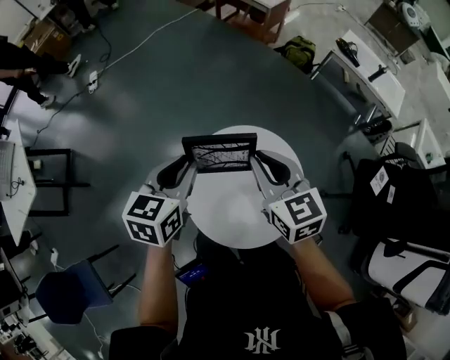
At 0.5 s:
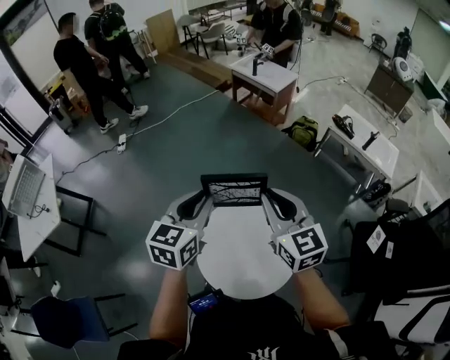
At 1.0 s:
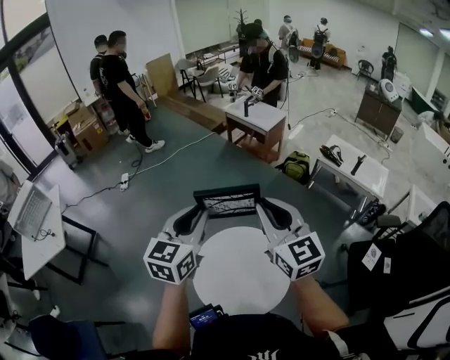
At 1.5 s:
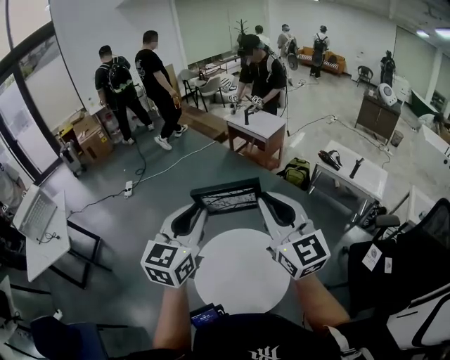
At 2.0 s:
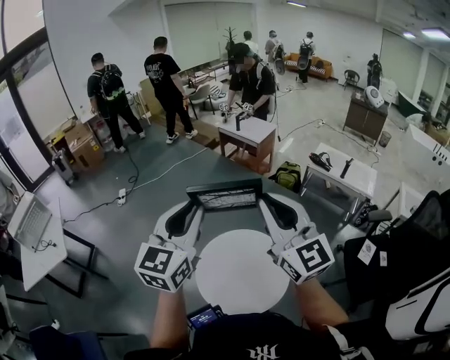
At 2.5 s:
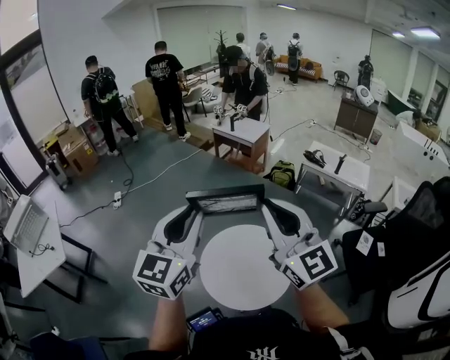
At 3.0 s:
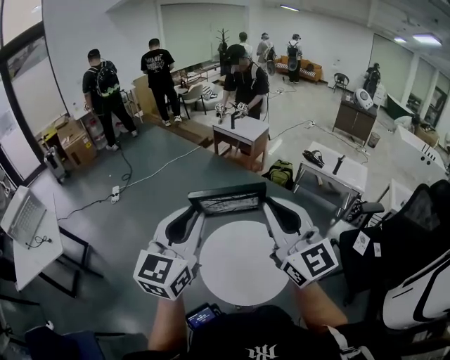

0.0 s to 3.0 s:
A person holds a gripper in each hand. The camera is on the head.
0.0 to 1.5 s: Both grippers travel together upward, some 30 cm. The left gripper turns by about 30 degrees; the right gripper angles its fingers upward, by approximately 30 degrees.
1.5 to 3.0 s: The grippers both shift backward and to the left by about 15 cm.

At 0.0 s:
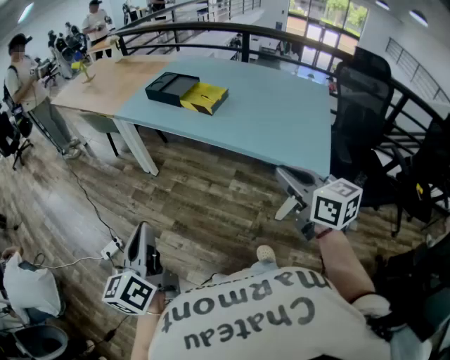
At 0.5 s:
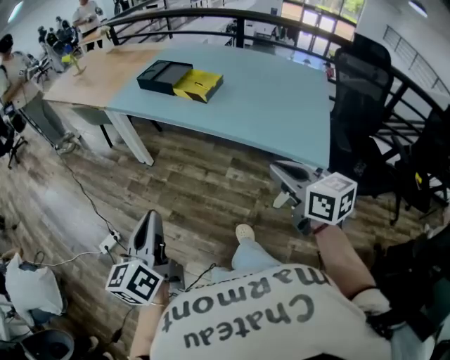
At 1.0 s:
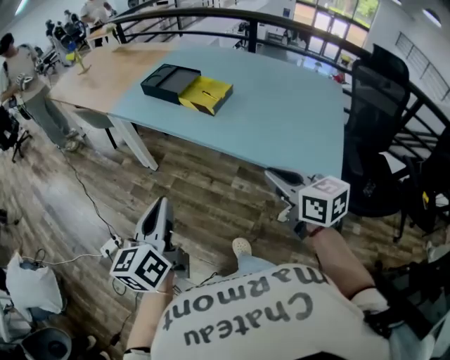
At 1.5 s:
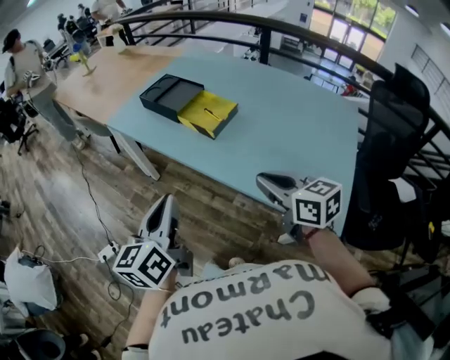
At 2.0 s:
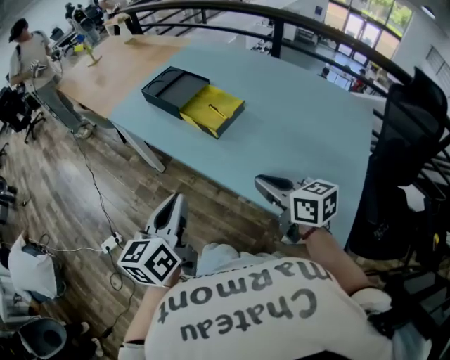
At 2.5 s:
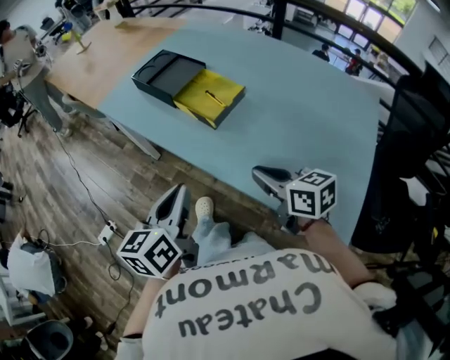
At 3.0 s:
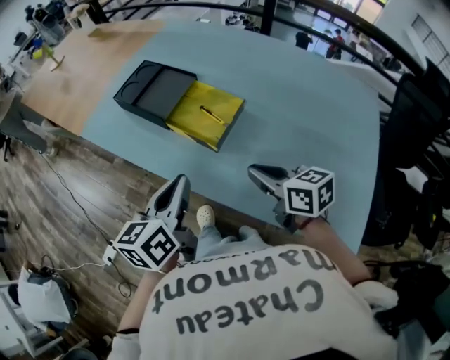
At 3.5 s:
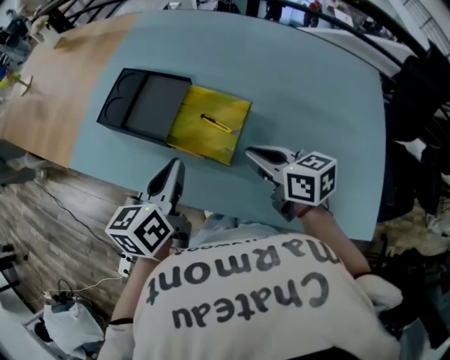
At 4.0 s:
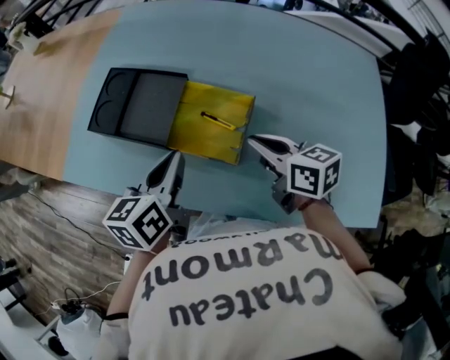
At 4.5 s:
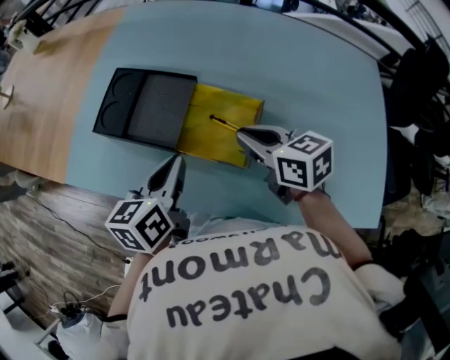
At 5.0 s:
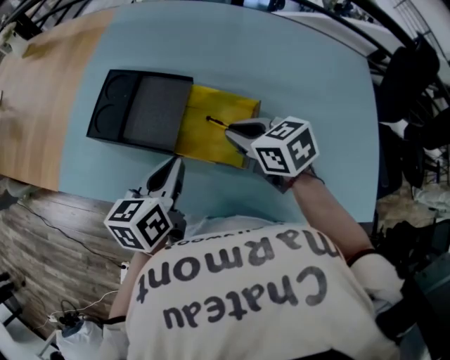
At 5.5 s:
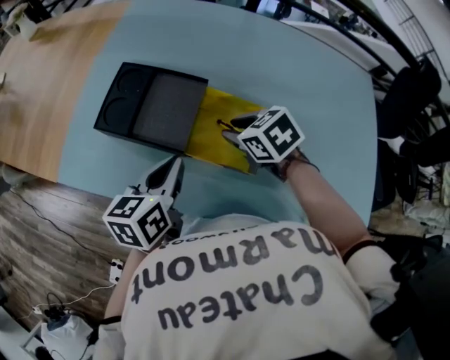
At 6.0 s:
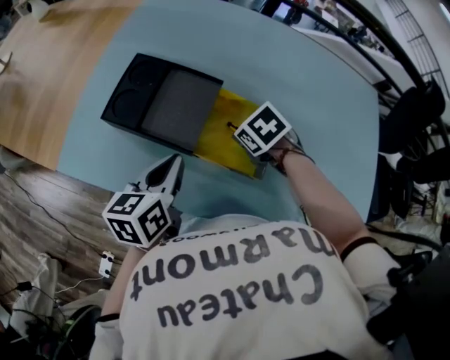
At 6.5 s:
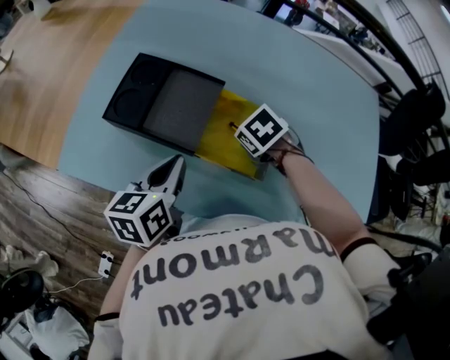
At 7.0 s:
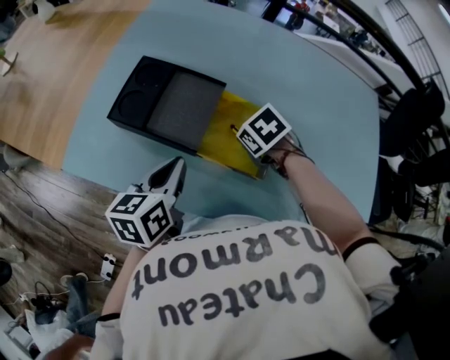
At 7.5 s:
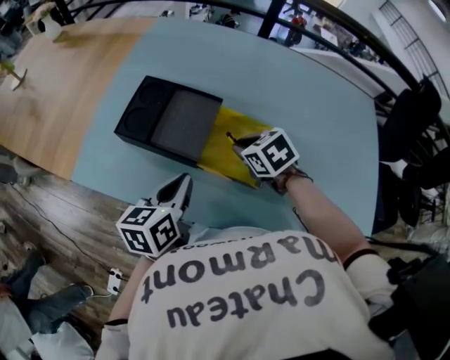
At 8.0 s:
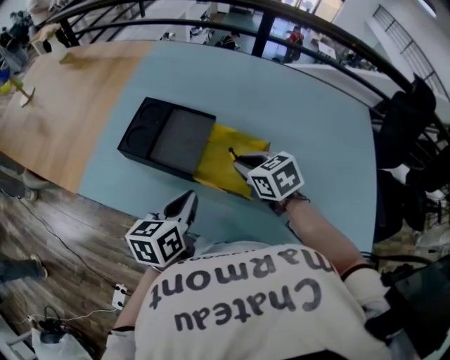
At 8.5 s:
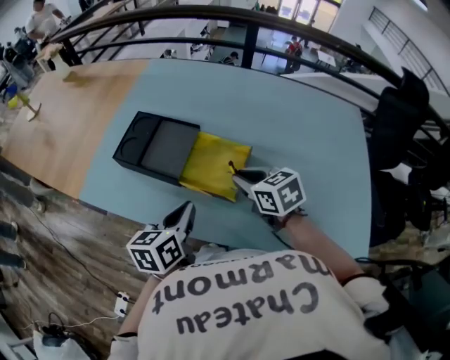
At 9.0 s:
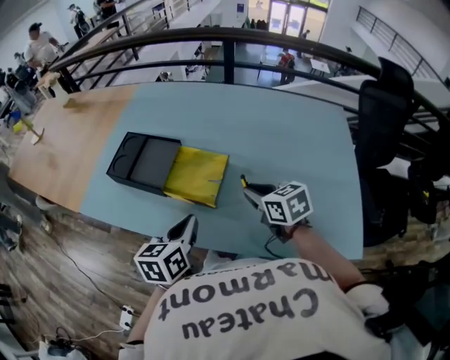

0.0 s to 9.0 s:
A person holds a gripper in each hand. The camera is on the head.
0.0 to 2.0 s: The left gripper goes about 35 cm forward and to the right; the right gripper goes approximately 25 cm forward, and changes its angle by about 20 degrees.
2.0 to 4.5 s: The two grippers go roughly 30 cm forward. The left gripper changes its angle by some 30 degrees.
4.5 to 7.0 s: The right gripper travels downward by about 10 cm, and points its fingers roughly 50 degrees further downward. Meanwhile the left gripper changes place by roughly 5 cm.
7.0 to 9.0 s: The right gripper changes place by approximately 20 cm, and points its fingers about 40 degrees further upward; the left gripper changes place by roughly 20 cm.

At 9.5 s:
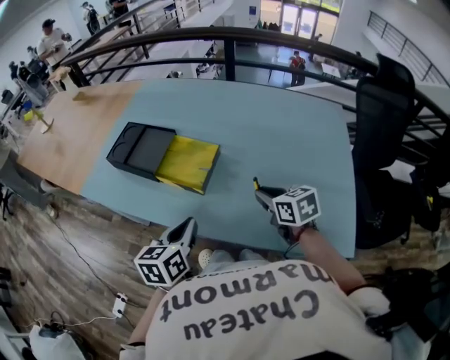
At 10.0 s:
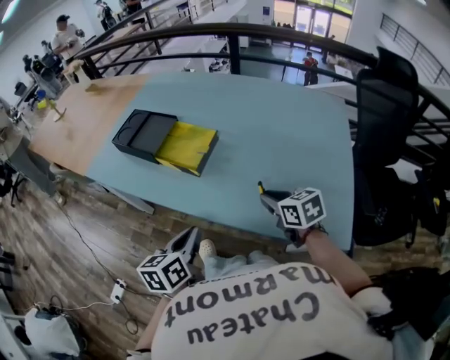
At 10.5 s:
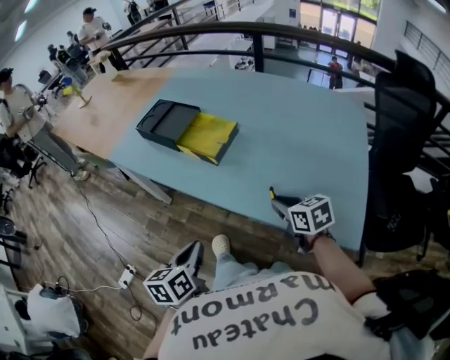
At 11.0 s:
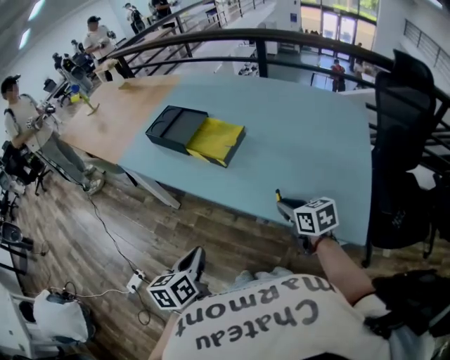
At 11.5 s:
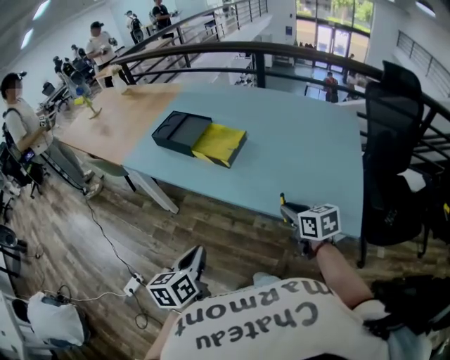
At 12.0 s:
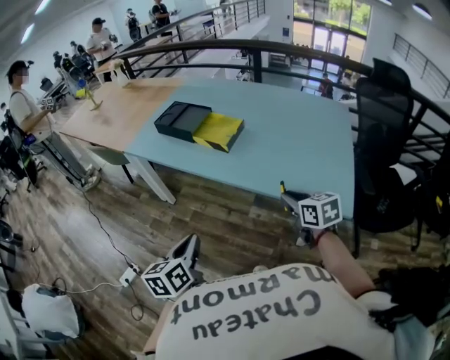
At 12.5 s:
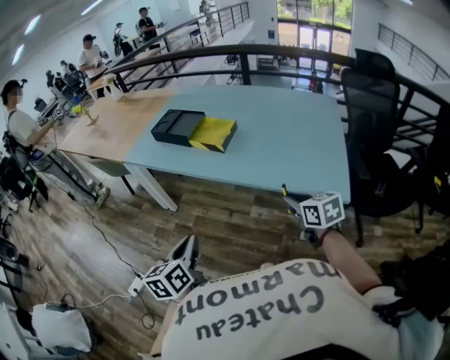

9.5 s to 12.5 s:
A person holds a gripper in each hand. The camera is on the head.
9.5 to 11.0 s: The right gripper goes some 10 cm backward; the left gripper moves backward, approximately 20 cm.
11.0 to 12.5 s: The right gripper goes roughly 20 cm backward and upward; the left gripper moves backward, upward and to the left, some 15 cm.

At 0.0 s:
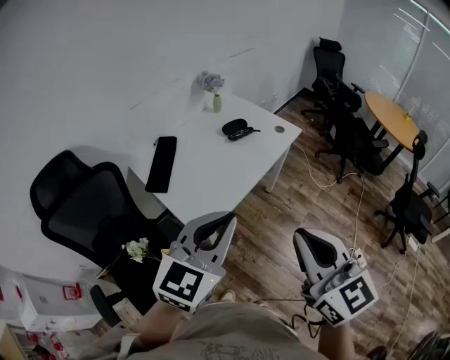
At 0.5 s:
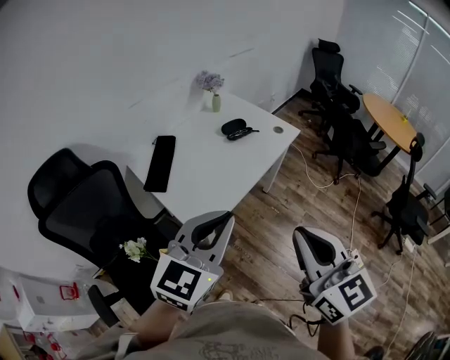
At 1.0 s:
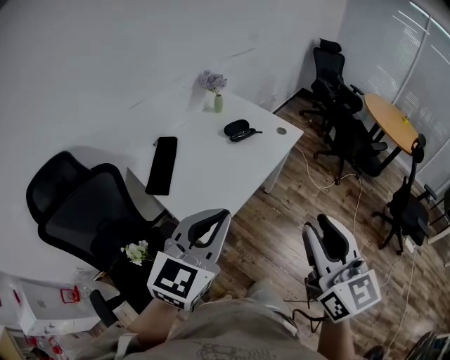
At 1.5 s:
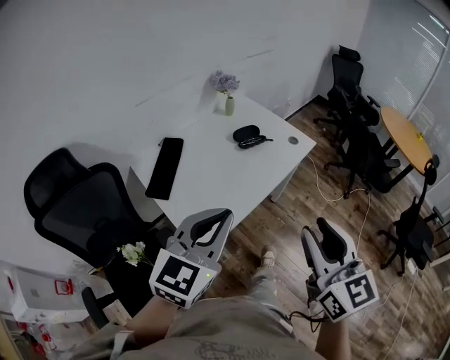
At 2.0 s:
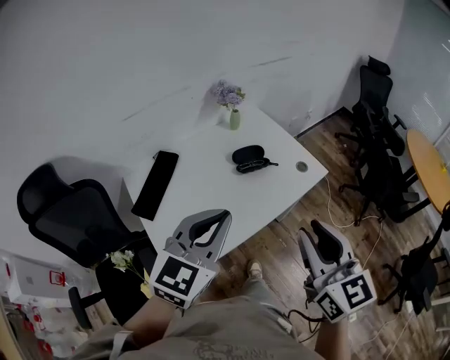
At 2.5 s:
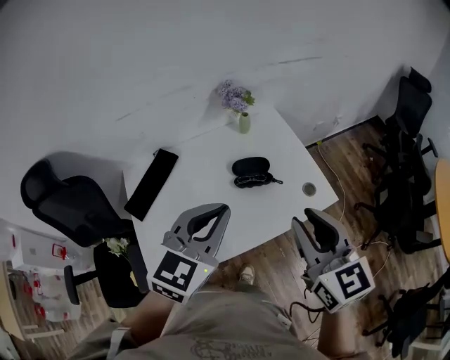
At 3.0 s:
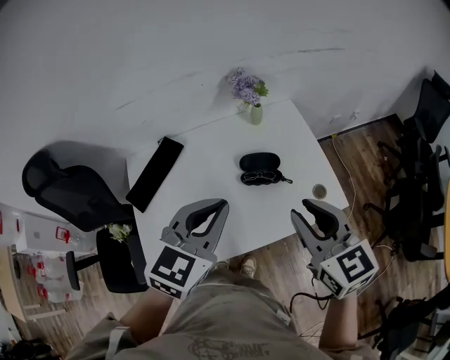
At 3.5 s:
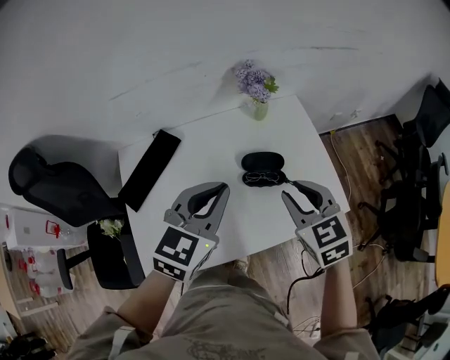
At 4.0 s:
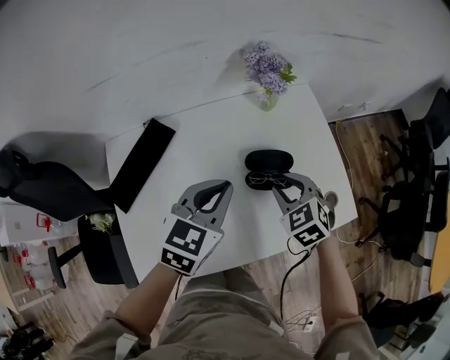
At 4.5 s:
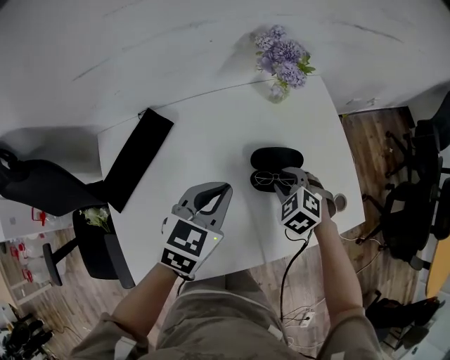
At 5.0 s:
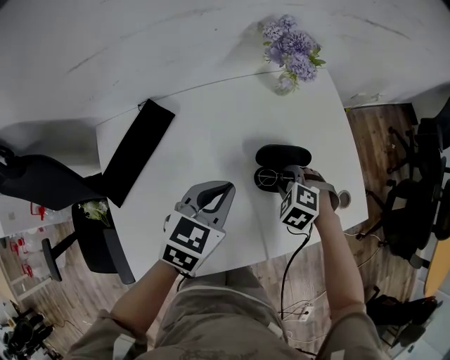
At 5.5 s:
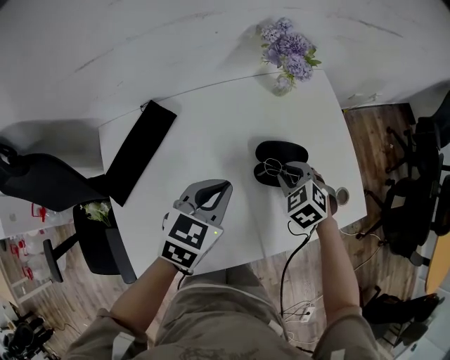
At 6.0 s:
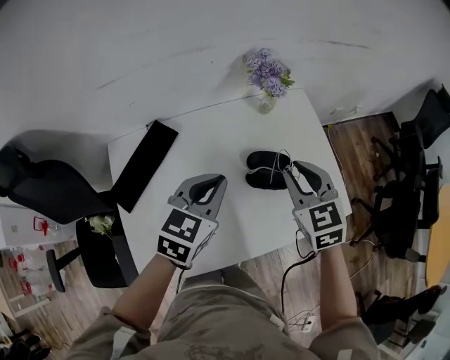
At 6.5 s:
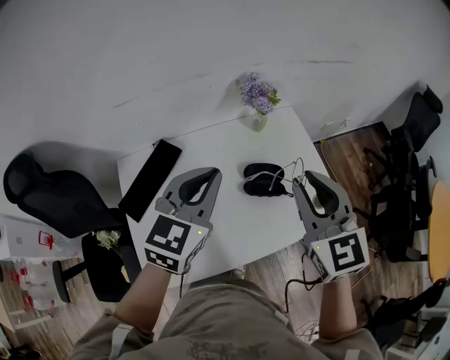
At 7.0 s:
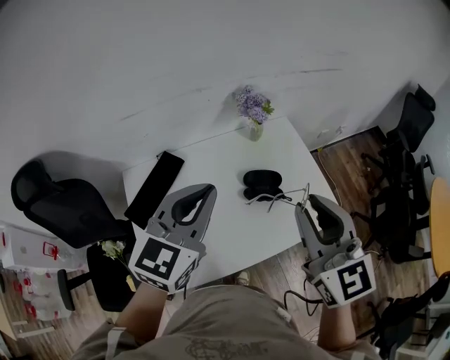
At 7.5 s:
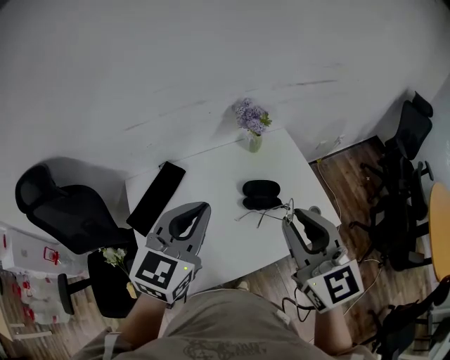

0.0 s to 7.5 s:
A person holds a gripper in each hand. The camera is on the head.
0.0 to 2.0 s: The two grippers go approximately 25 cm forward. The right gripper opens.
2.0 to 4.0 s: The grippers both shift forward and downward by roughly 40 cm. The left gripper changes its angle by about 30 degrees. Meanwhile the right gripper tips its fingers downward by about 40 degrees.
4.0 to 5.5 s: Both grippers move downward, approximately 10 cm.
5.5 to 7.5 s: The right gripper travels upward and backward by about 40 cm, and tilts its fingers about 50 degrees upward, while the left gripper goes roughly 25 cm upward, and turns by roughly 30 degrees.

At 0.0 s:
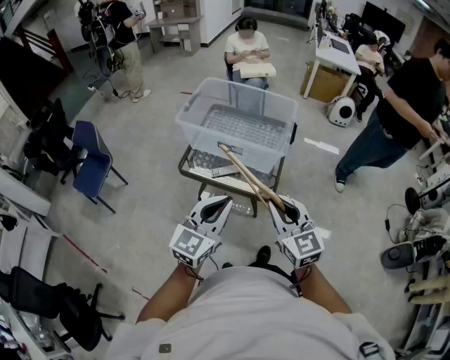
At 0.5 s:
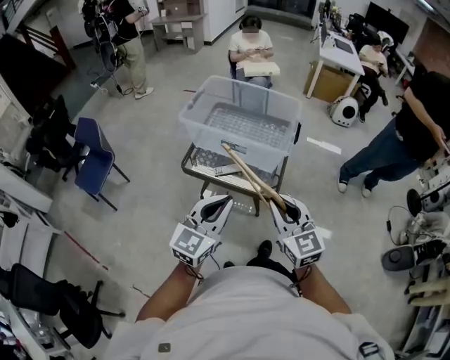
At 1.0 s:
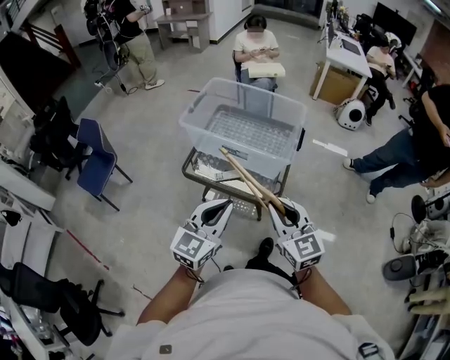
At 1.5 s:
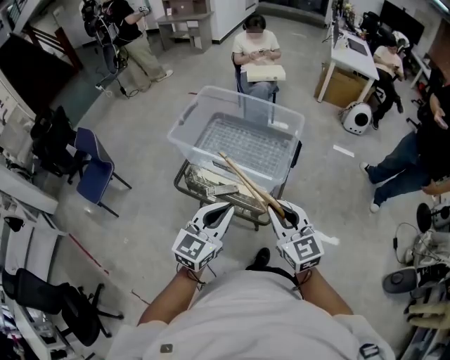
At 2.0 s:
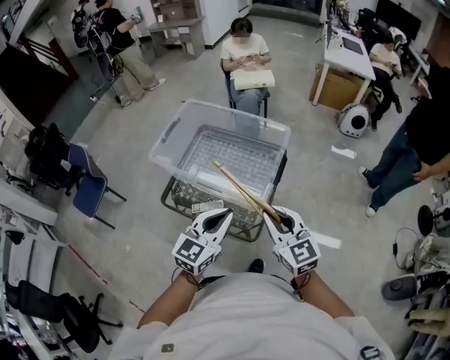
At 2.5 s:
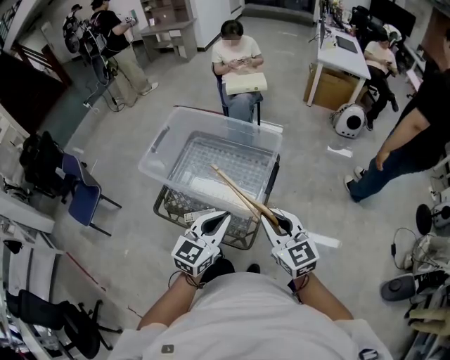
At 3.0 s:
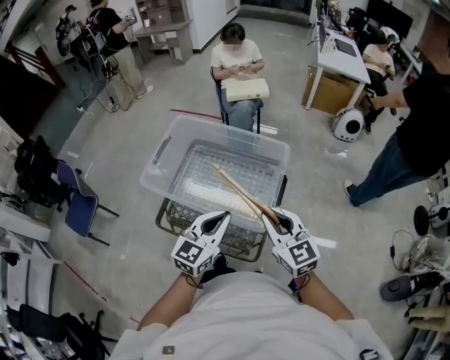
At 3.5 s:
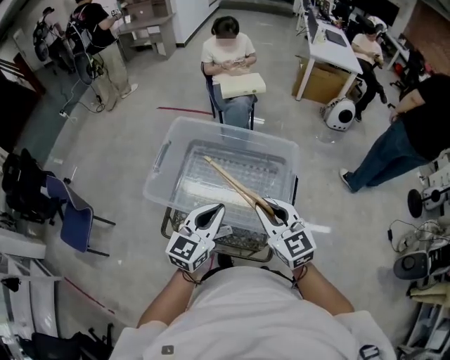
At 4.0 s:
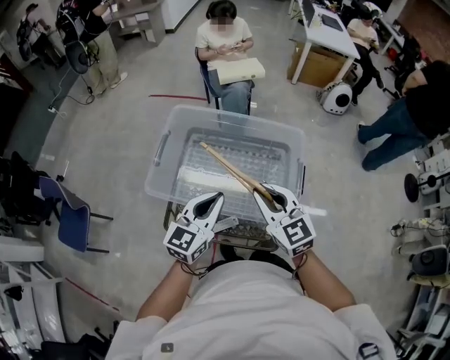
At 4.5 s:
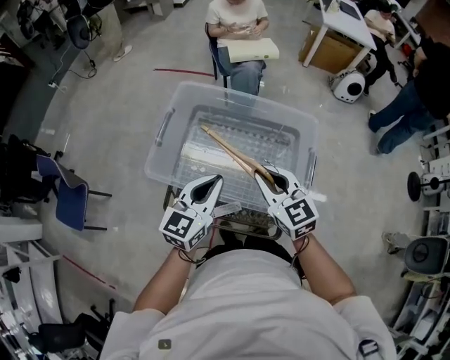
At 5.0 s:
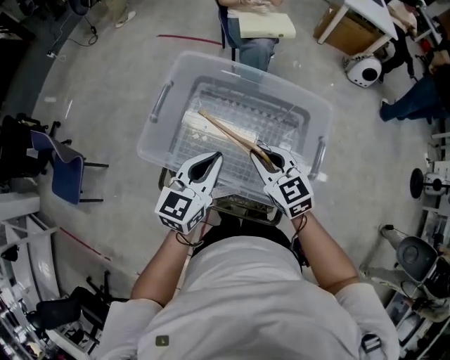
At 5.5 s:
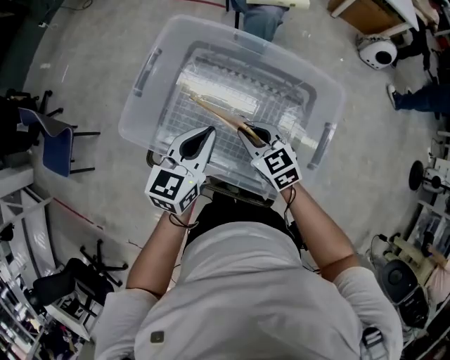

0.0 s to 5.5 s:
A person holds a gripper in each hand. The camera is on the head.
0.0 to 2.0 s: Both grippers move forward and to the right, approximately 30 cm.
2.0 to 3.5 s: The two grippers go about 20 cm forward and to the left.
3.5 to 5.5 s: The right gripper heads downward and forward, covering approximately 30 cm, and swivels roughly 30 degrees; the left gripper heads forward and downward, covering some 20 cm.
